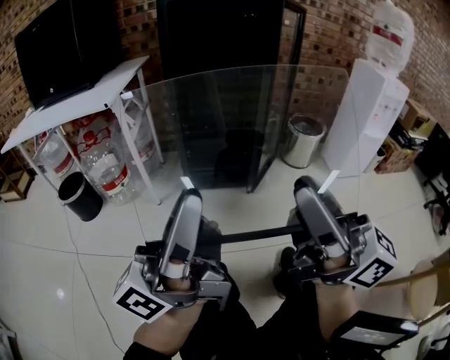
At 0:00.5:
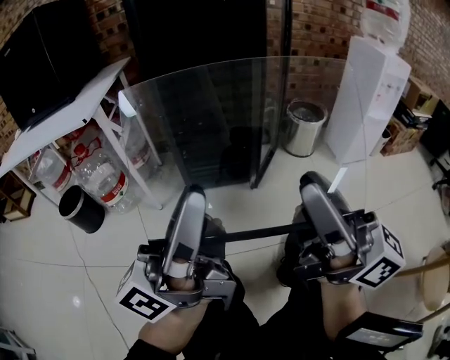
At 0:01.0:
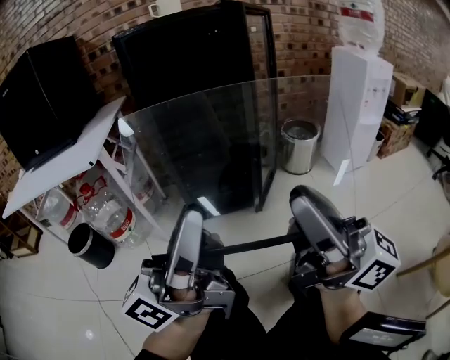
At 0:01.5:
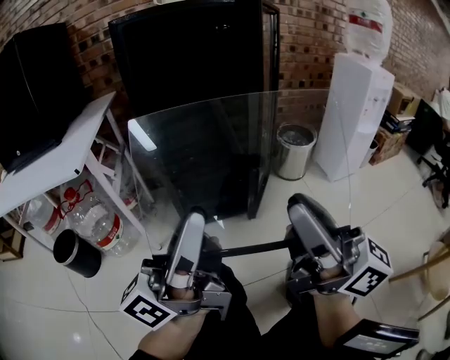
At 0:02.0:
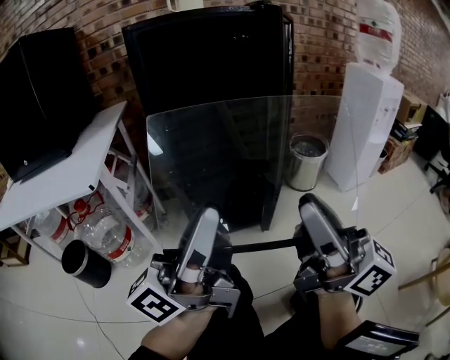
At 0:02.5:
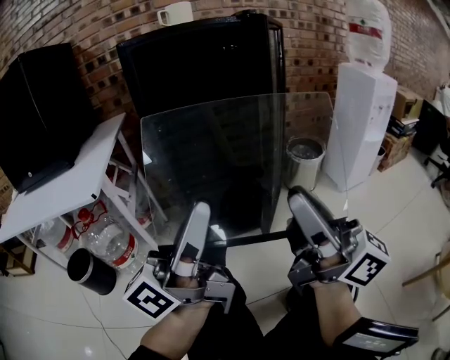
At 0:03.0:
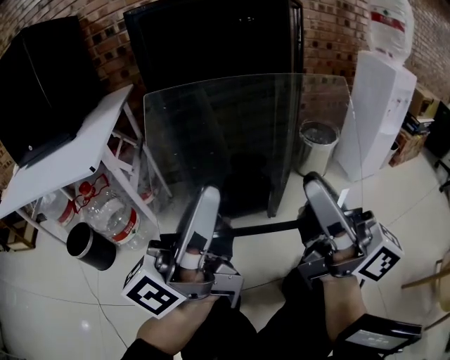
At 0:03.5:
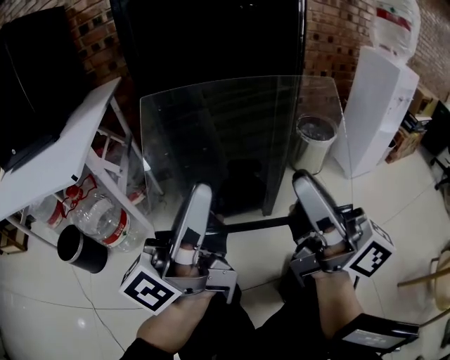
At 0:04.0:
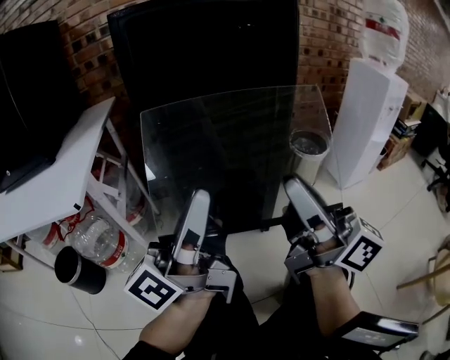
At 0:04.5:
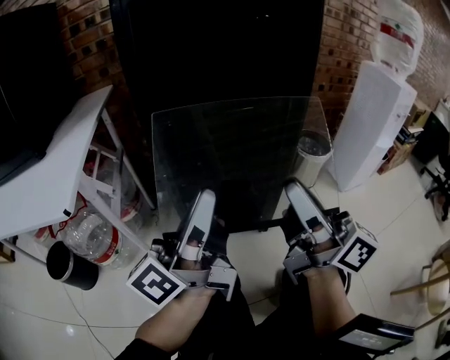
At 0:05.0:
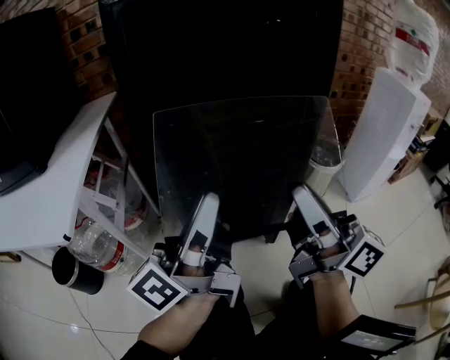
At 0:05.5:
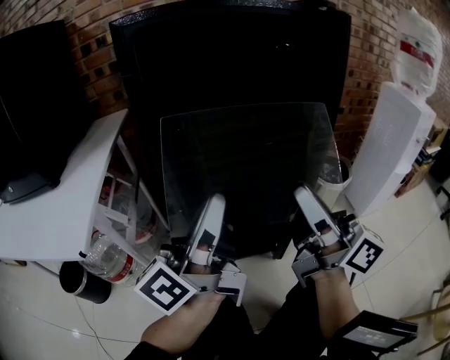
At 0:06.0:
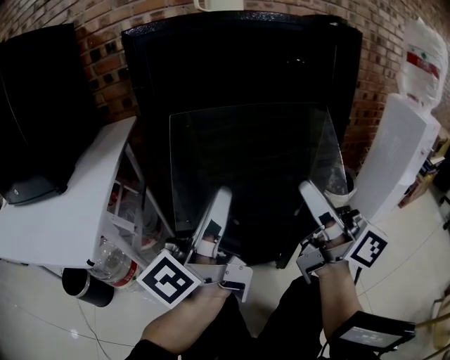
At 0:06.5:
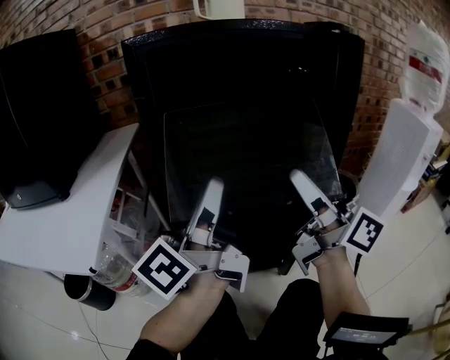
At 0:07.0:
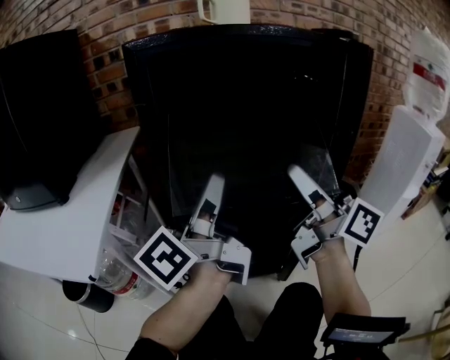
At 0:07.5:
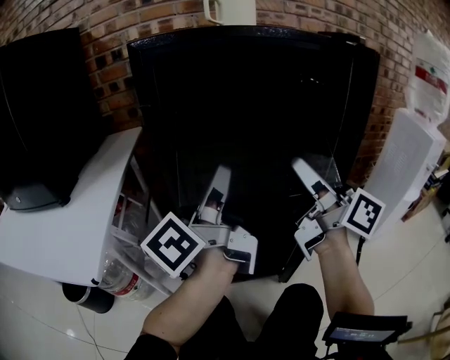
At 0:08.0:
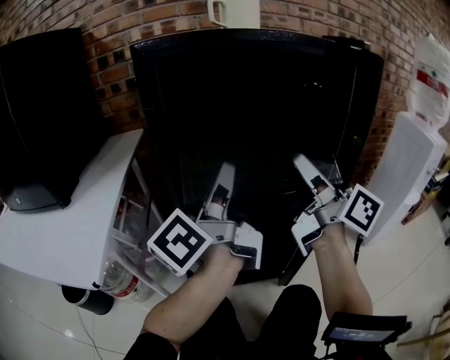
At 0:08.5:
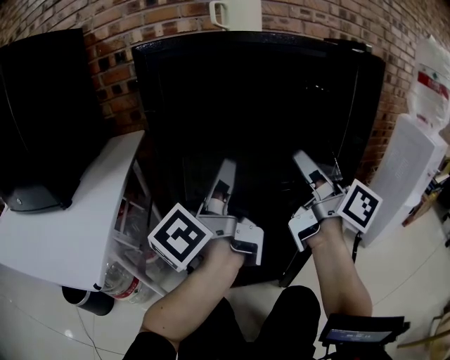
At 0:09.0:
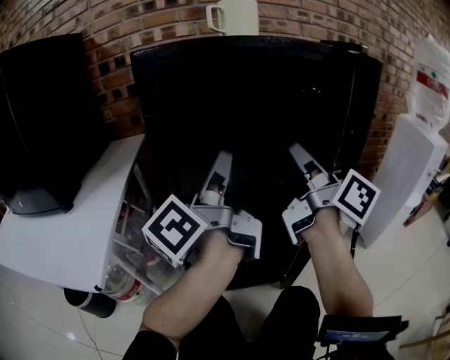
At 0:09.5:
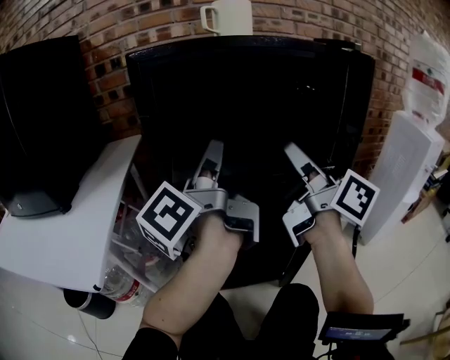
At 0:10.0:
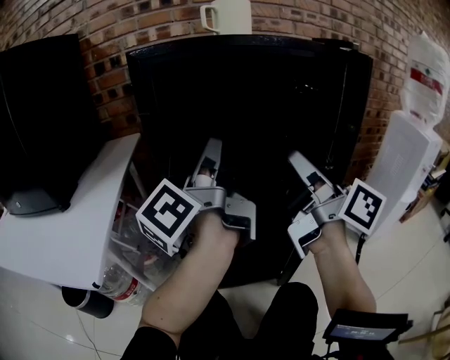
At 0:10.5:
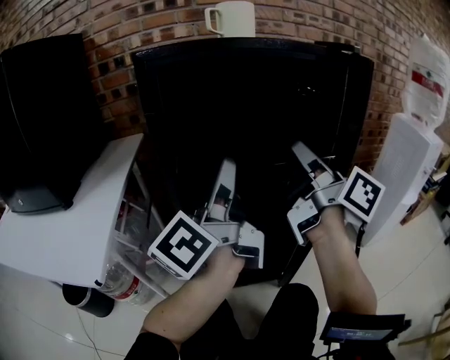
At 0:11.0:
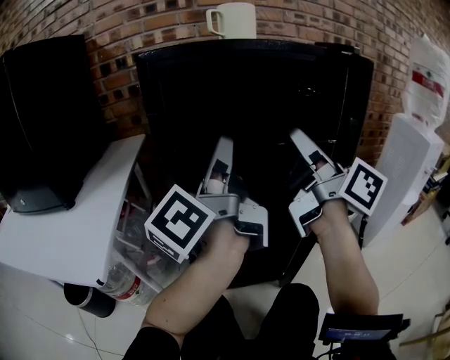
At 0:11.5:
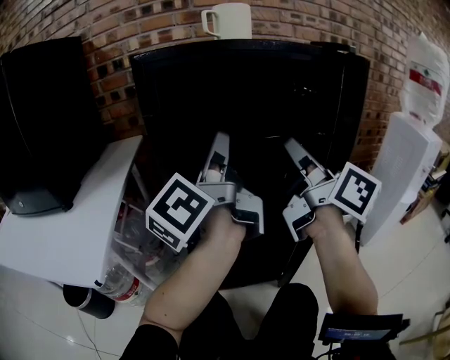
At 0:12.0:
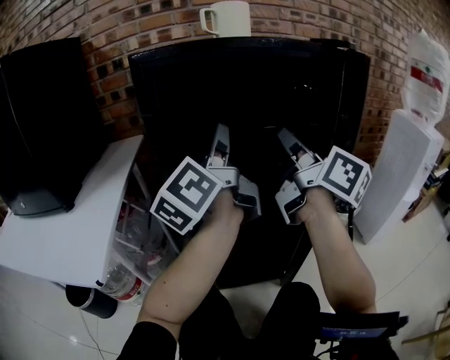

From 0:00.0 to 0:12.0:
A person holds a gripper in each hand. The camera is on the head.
From 0:00.0 to 0:02.0: The grippers both shift forward by some 15 cm.
From 0:02.0 to 0:04.0: Both grippers move forward, roughly 10 cm.
From 0:04.0 to 0:06.0: The grippers both shift forward by approximately 15 cm.
From 0:06.0 to 0:08.0: Both grippers move forward, about 10 cm.
From 0:08.0 to 0:10.0: The grippers stay close to where they were, moving slightly.
From 0:10.0 to 0:12.0: The right gripper moves forward, approximately 5 cm.

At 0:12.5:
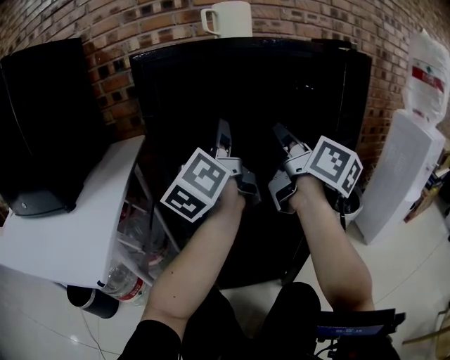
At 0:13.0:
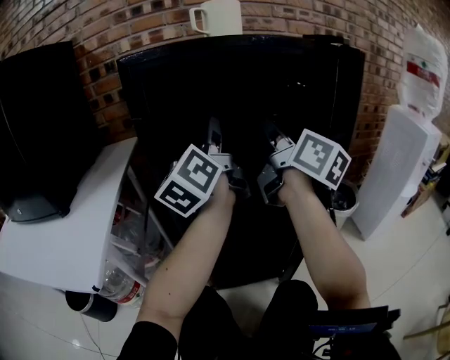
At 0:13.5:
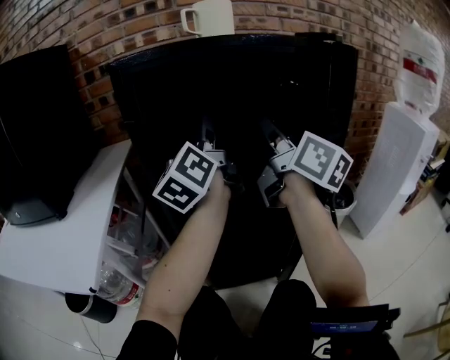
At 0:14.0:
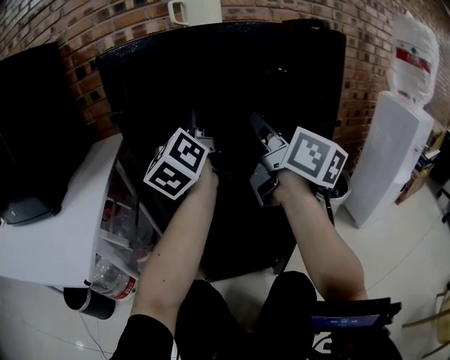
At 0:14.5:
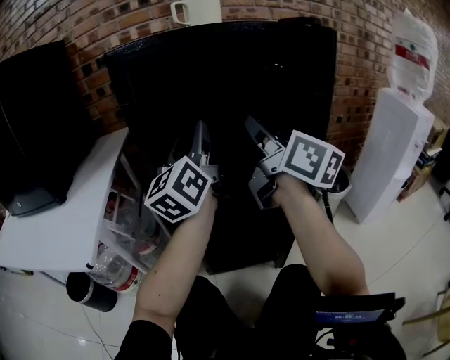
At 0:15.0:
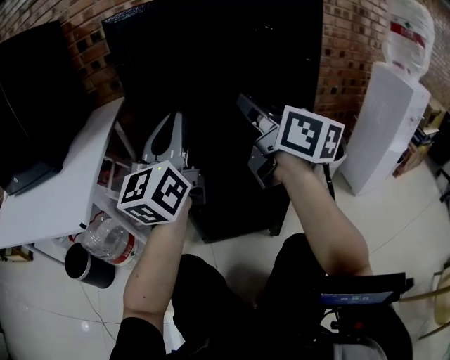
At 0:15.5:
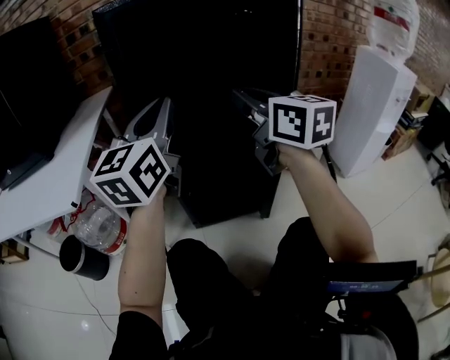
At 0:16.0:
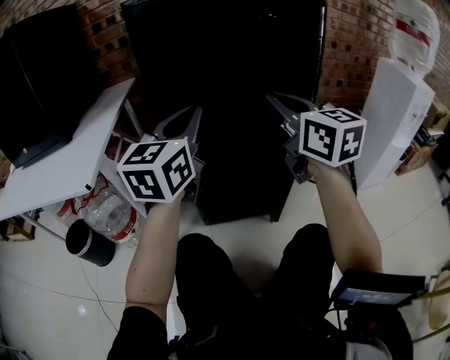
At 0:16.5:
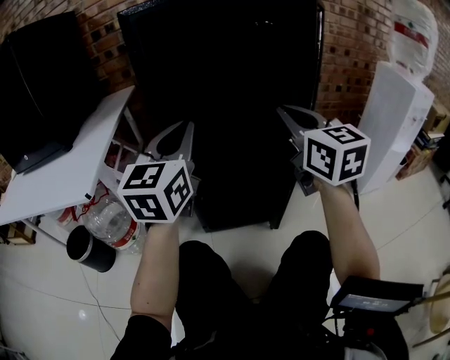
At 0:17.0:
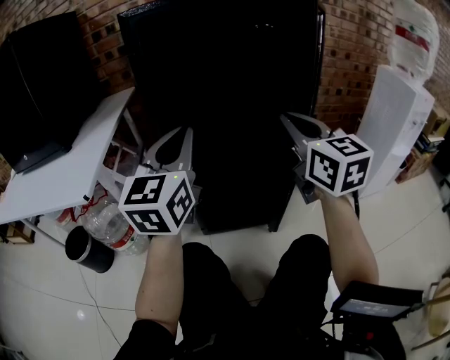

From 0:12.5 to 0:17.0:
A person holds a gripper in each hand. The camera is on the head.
From 0:12.5 to 0:14.5: The grippers stay close to where they were, moving slightly.
From 0:14.5 to 0:17.0: The left gripper moves backward, about 15 cm, turns by about 30 degrees, and closes up. Meanwhile the right gripper is displaced backward, downward and to the right by about 15 cm, and rotates some 40 degrees.

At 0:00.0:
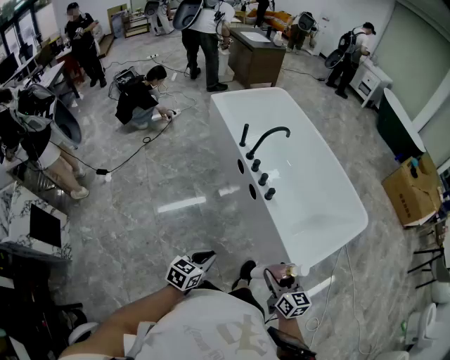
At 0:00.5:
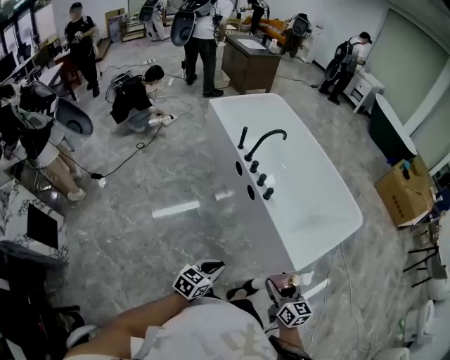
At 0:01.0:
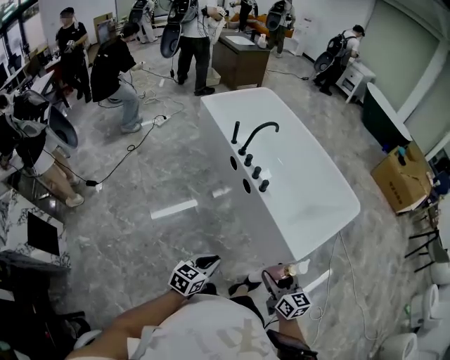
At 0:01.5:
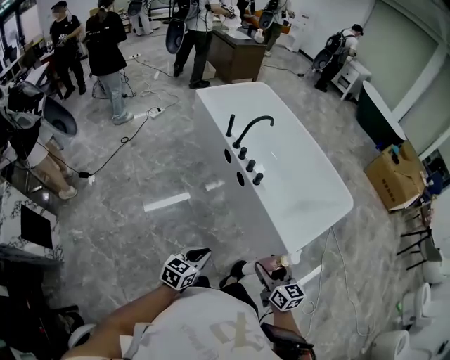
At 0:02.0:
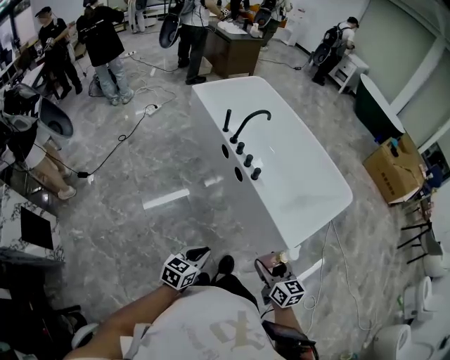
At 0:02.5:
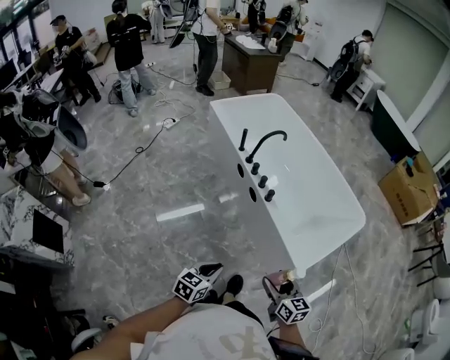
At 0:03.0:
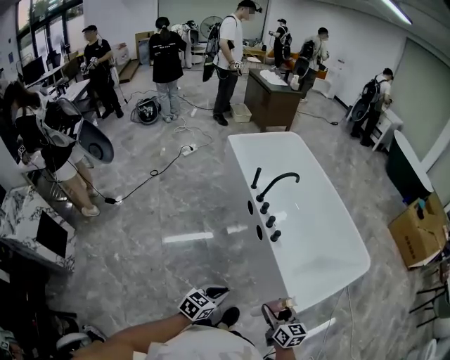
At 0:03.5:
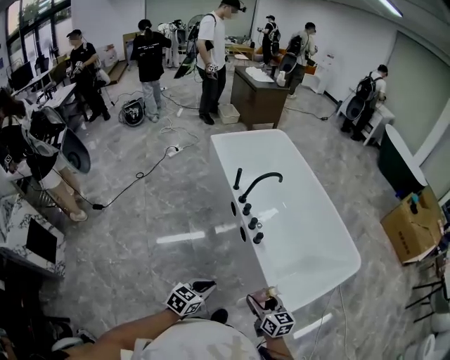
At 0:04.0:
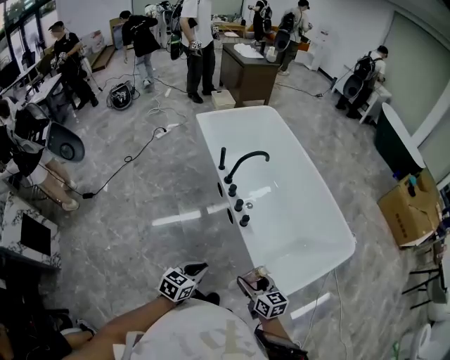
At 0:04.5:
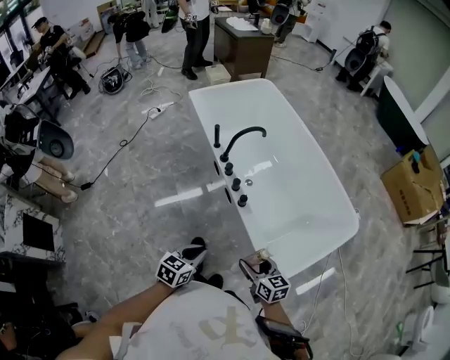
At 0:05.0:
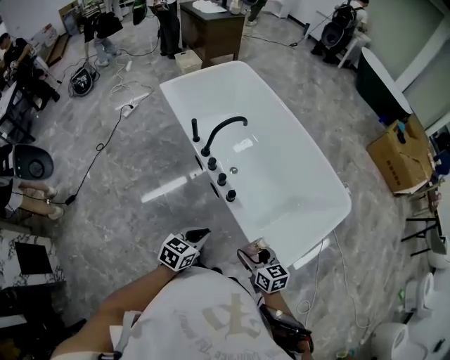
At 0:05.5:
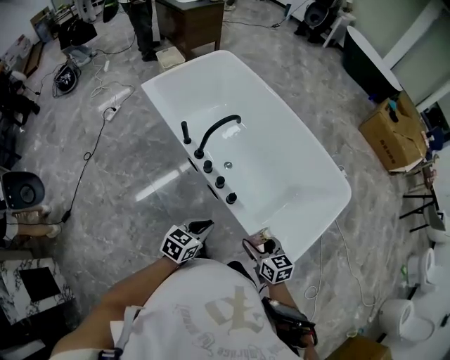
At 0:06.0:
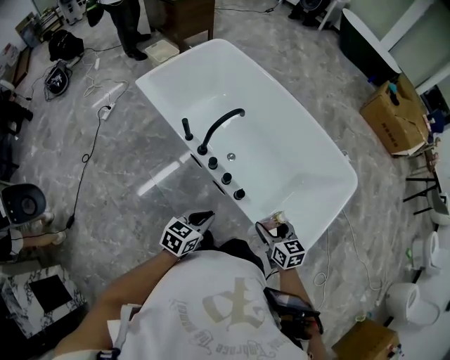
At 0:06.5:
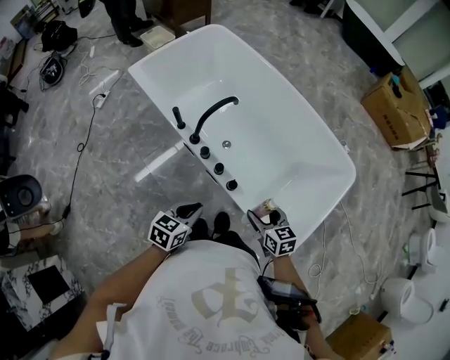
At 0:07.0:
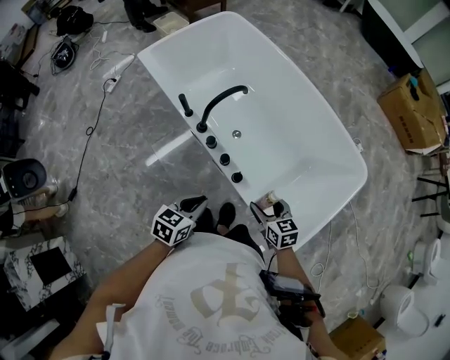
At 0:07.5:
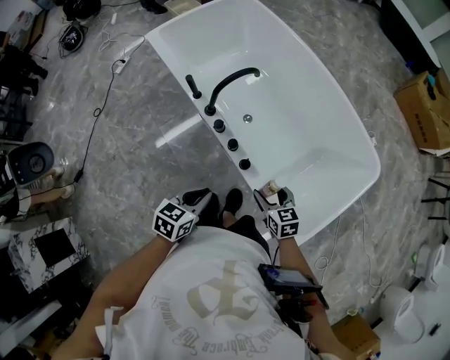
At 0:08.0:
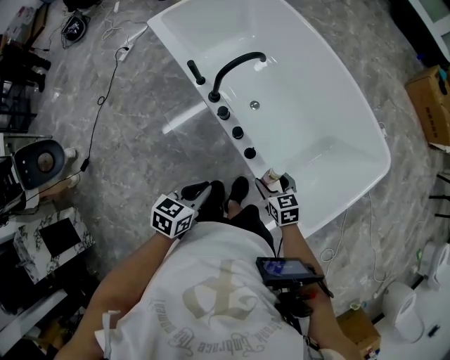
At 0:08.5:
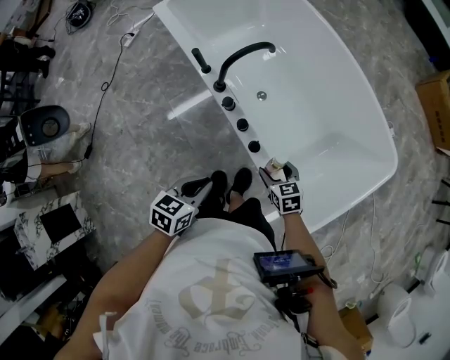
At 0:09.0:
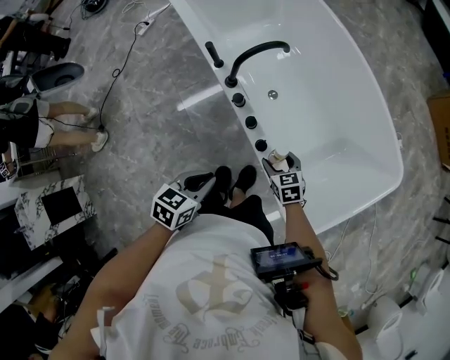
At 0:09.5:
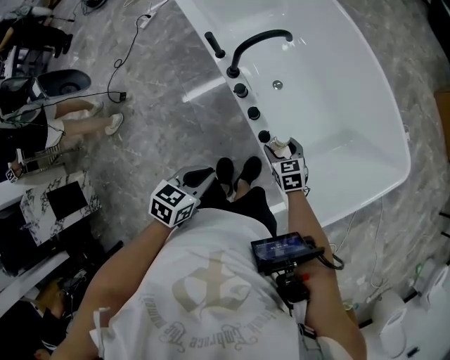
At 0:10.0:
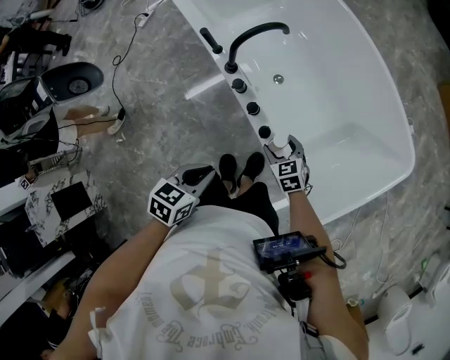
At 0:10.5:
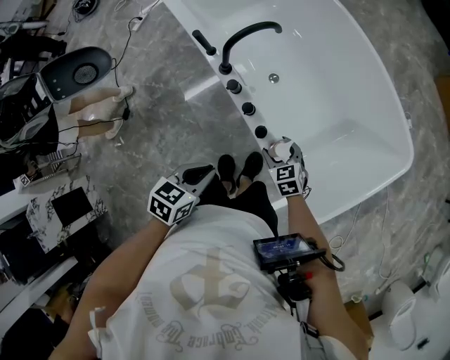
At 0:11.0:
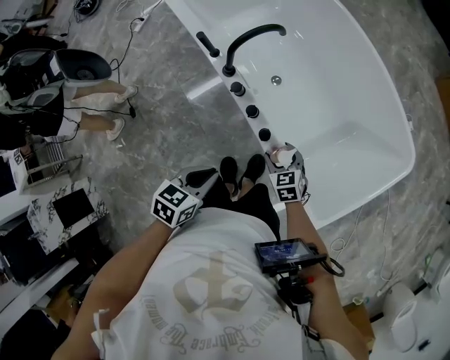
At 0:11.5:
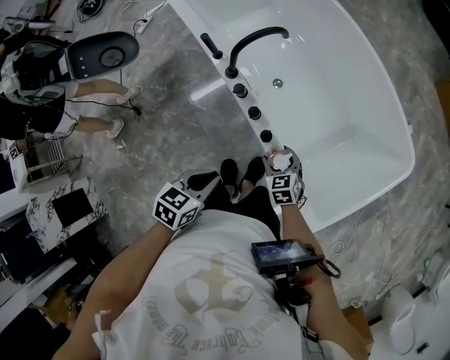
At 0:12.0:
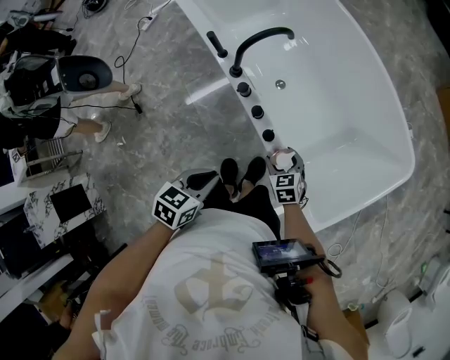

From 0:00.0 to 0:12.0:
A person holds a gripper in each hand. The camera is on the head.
From 0:00.0 to 0:02.0: The two grippers go about 10 cm backward.
From 0:02.0 to 0:04.0: The left gripper moves forward and to the right, roughly 20 cm. The right gripper moves forward, approximately 20 cm.
From 0:04.0 to 0:06.0: The grippers both shift forward by some 25 cm. The right gripper swivels roughly 20 degrees, while the left gripper changes its angle by roughly 20 degrees.
From 0:06.0 to 0:08.0: The right gripper moves downward, roughly 15 cm.
From 0:08.0 to 0:10.0: The right gripper shifts about 10 cm downward and forward.
From 0:10.0 to 0:12.0: The grippers make only small movements.
